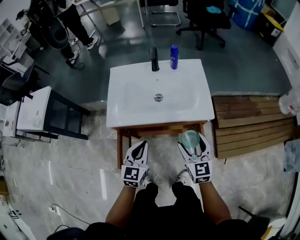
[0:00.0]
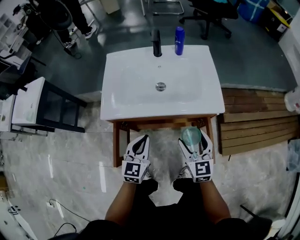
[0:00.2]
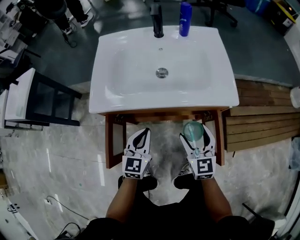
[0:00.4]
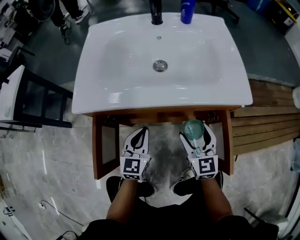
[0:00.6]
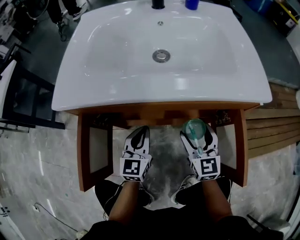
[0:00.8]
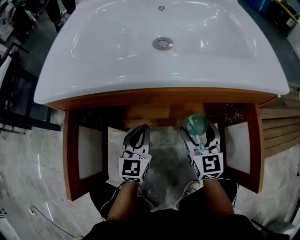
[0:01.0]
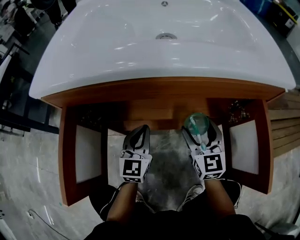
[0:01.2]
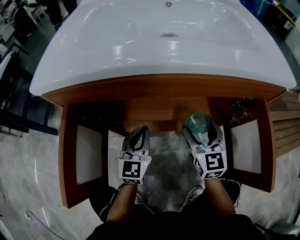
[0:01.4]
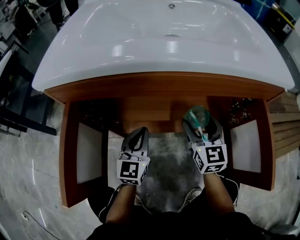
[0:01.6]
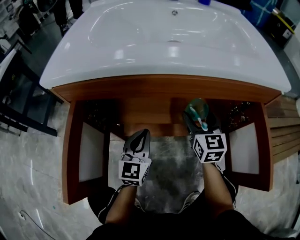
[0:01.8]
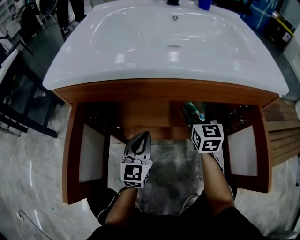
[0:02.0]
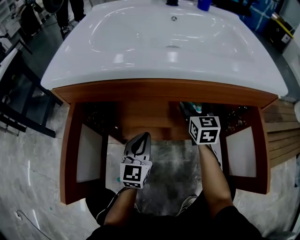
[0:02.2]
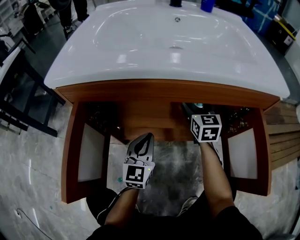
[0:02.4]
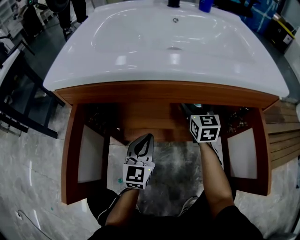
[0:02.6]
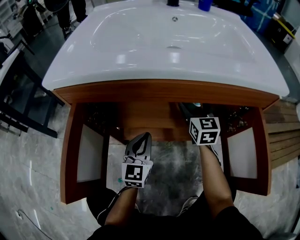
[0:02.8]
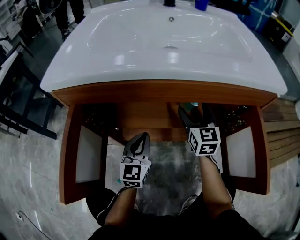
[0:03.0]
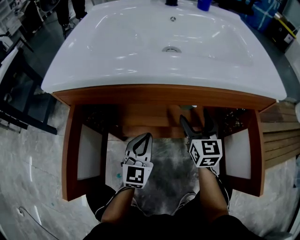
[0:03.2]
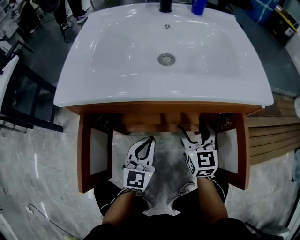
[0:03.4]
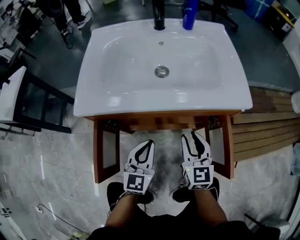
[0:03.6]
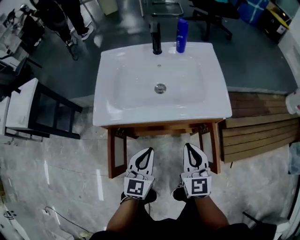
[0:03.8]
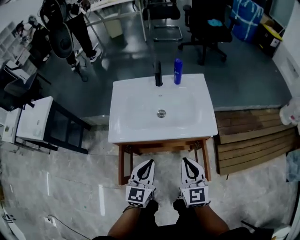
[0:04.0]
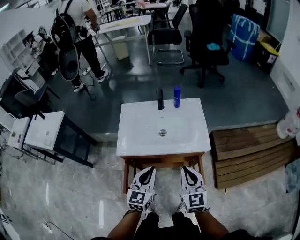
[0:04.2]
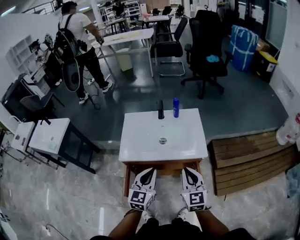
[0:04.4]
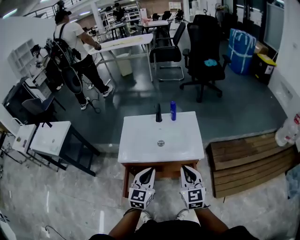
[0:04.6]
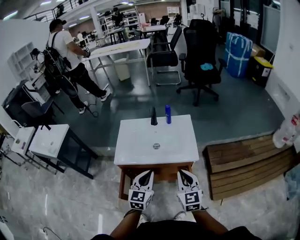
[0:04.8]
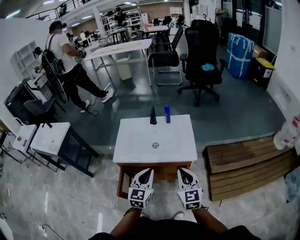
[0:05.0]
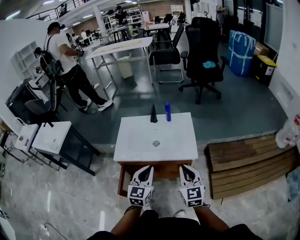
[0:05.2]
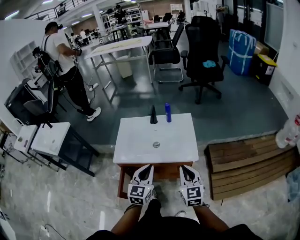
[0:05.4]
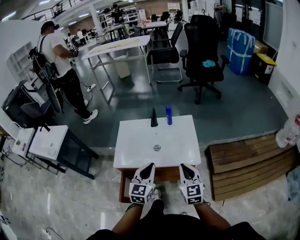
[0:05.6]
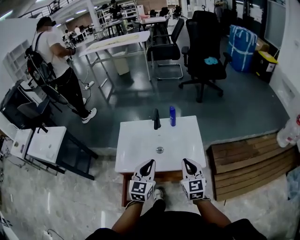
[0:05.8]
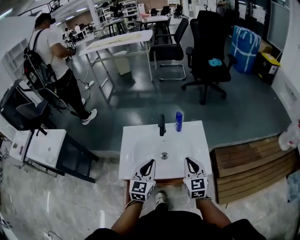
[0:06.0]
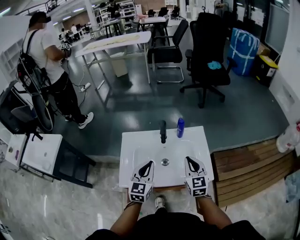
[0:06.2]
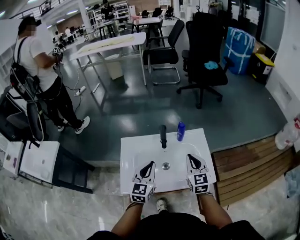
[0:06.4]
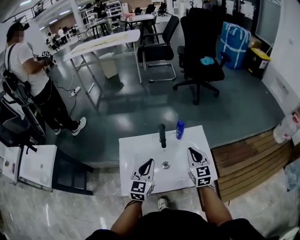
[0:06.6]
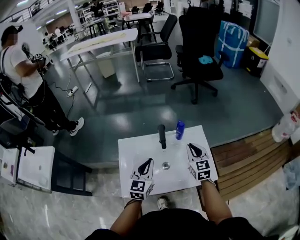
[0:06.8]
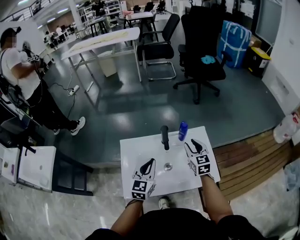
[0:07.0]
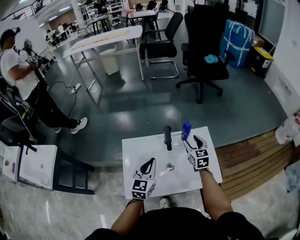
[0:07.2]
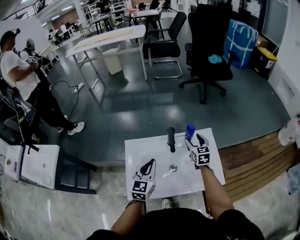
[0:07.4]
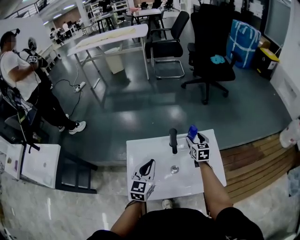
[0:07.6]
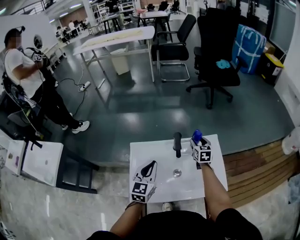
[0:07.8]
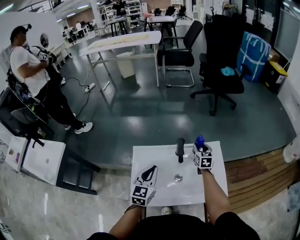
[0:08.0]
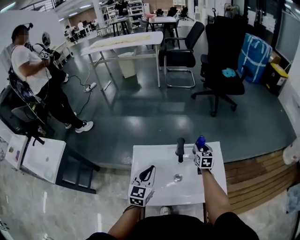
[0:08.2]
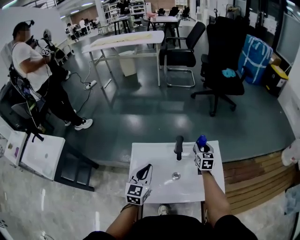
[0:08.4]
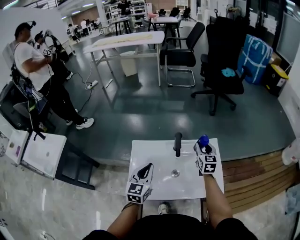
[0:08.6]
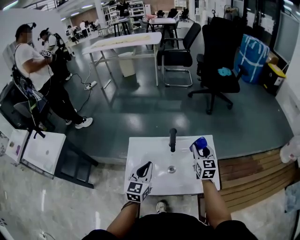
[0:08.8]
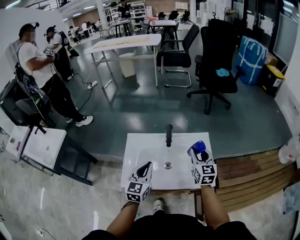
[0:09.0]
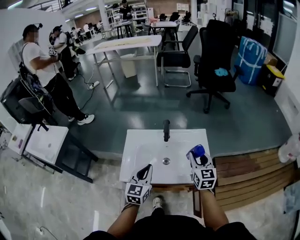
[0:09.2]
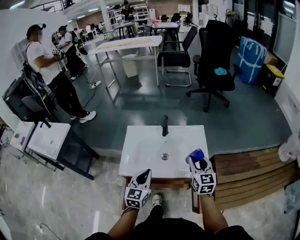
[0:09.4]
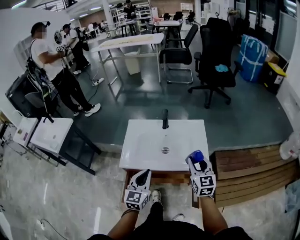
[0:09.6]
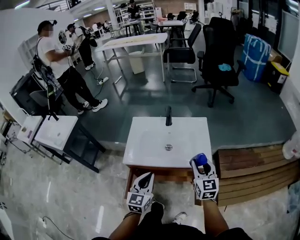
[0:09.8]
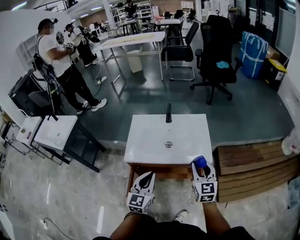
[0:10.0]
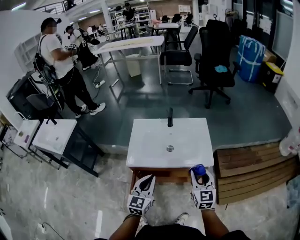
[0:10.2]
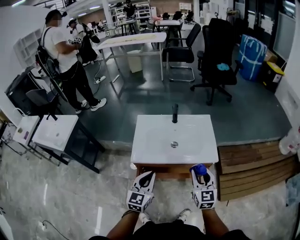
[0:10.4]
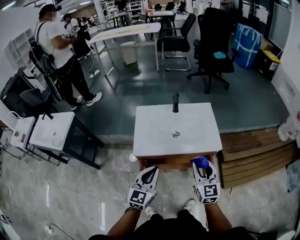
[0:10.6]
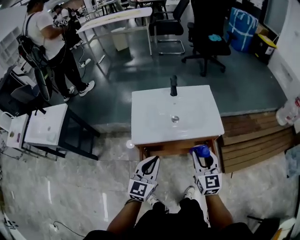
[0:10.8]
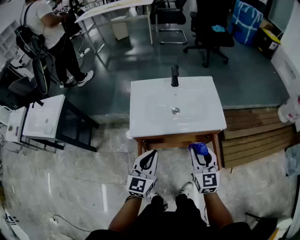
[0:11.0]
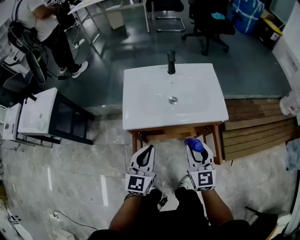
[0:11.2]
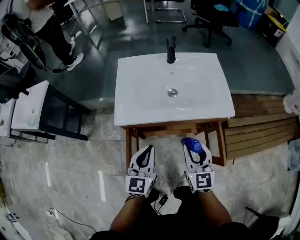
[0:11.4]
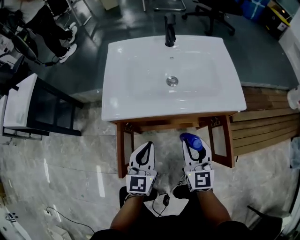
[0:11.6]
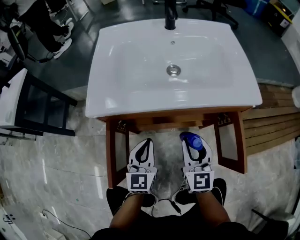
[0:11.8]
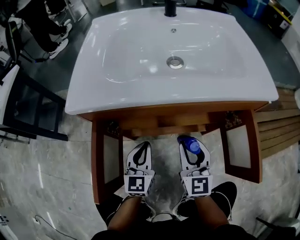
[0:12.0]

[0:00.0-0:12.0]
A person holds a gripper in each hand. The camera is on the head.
0:00.0 to 0:01.6: Both grippers move downward, roughly 40 cm.
0:01.6 to 0:03.0: The right gripper is displaced forward by about 5 cm.
0:03.0 to 0:04.4: The left gripper shifts some 50 cm upward; the right gripper moves upward and backward, approximately 50 cm, and closes its fingers.
0:04.4 to 0:06.0: The grippers both shift forward by some 15 cm.
0:06.0 to 0:07.6: The left gripper moves forward and to the left, some 15 cm. The right gripper shifts about 25 cm forward, and opens its fingers.
0:07.6 to 0:09.0: The left gripper is displaced backward by about 10 cm. Meanwhile the right gripper moves backward and upward, approximately 20 cm.
0:09.0 to 0:10.4: The grippers both shift backward by roughly 25 cm.
0:10.4 to 0:12.0: The grippers both shift downward by some 40 cm.

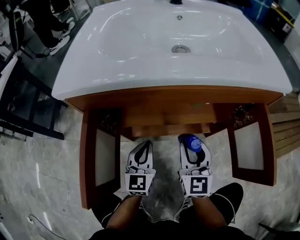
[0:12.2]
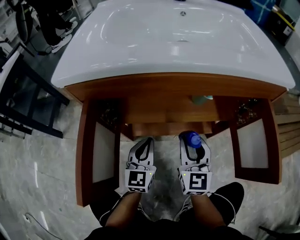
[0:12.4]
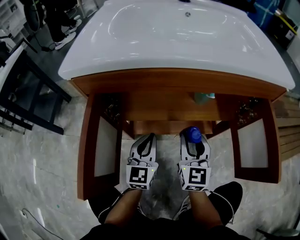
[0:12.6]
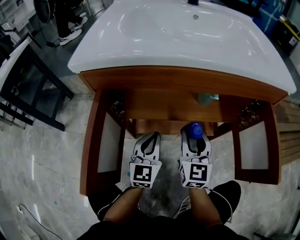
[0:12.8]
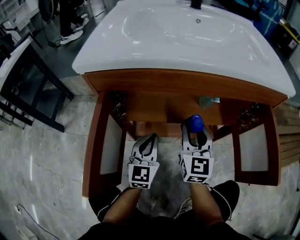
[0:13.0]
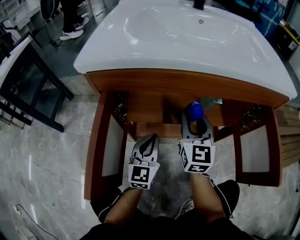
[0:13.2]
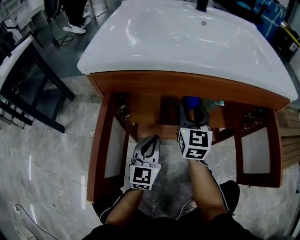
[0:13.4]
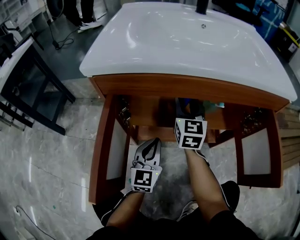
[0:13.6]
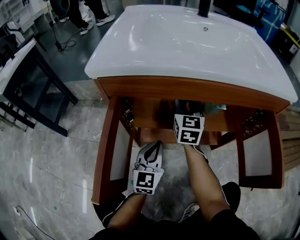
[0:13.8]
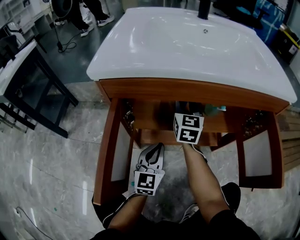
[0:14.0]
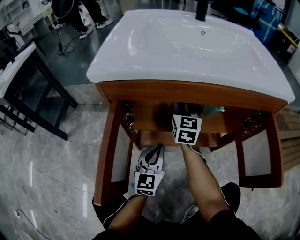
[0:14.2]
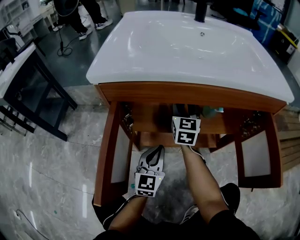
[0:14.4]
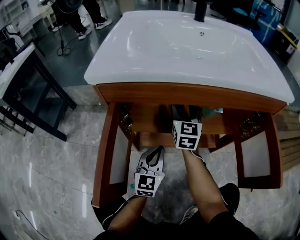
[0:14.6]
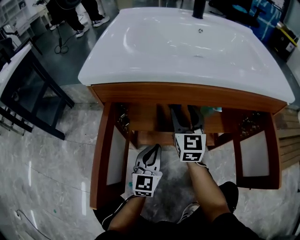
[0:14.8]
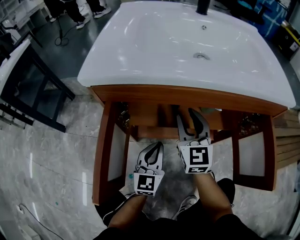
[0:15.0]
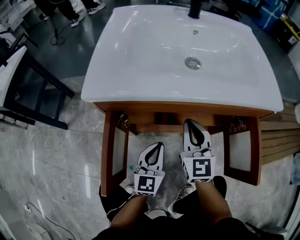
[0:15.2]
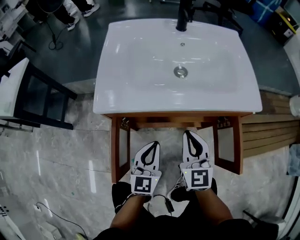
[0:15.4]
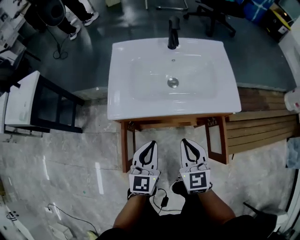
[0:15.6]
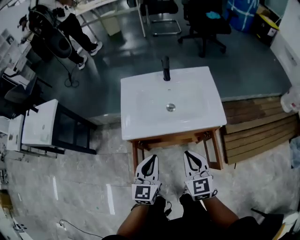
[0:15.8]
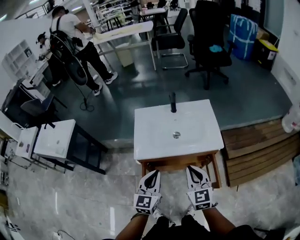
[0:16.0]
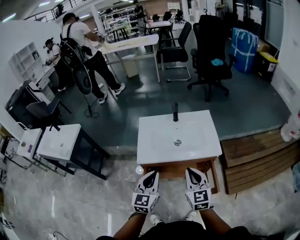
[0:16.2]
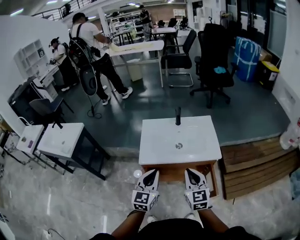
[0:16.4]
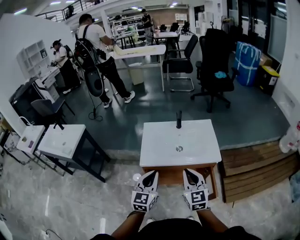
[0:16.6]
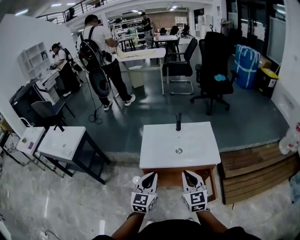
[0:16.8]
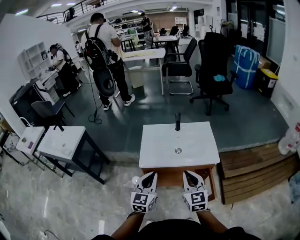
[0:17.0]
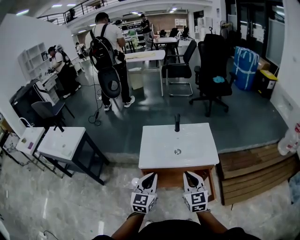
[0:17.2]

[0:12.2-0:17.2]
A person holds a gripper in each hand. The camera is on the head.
0:12.2 to 0:13.8: The right gripper moves forward and to the left, approximately 20 cm.
0:13.8 to 0:15.6: The right gripper goes about 35 cm upward and backward, and closes up; the left gripper shifts about 30 cm upward.
0:15.6 to 0:17.2: The grippers both shift upward by some 25 cm.

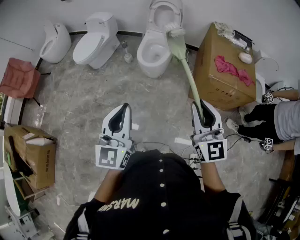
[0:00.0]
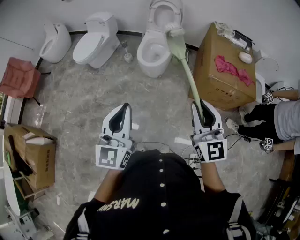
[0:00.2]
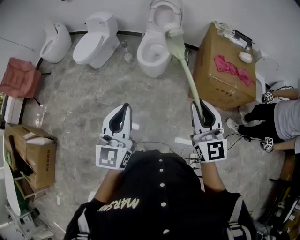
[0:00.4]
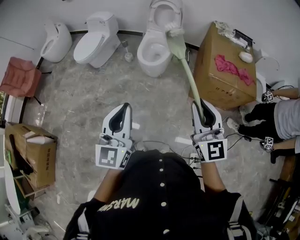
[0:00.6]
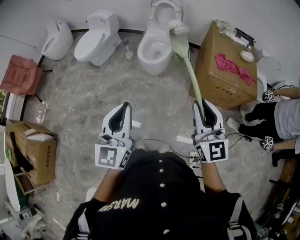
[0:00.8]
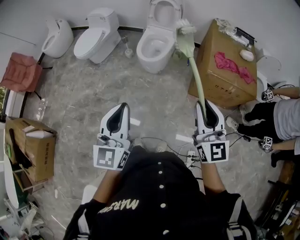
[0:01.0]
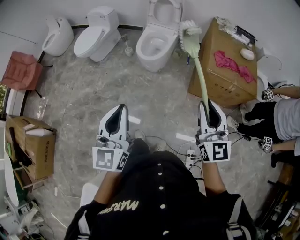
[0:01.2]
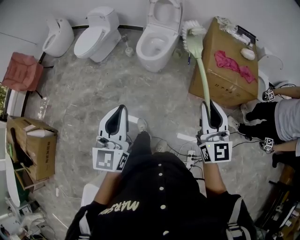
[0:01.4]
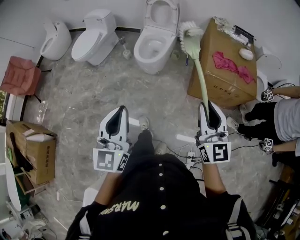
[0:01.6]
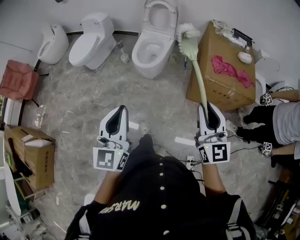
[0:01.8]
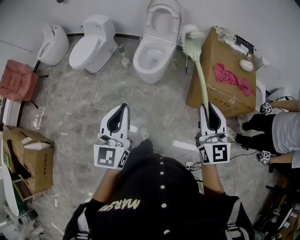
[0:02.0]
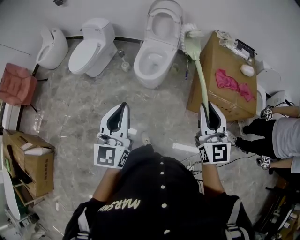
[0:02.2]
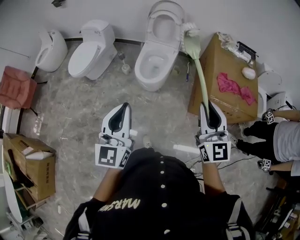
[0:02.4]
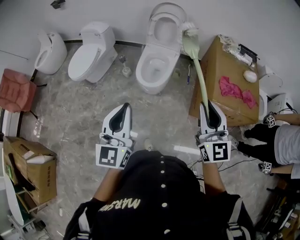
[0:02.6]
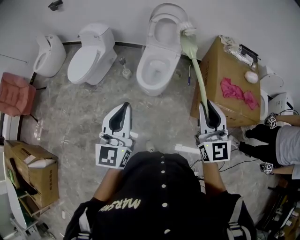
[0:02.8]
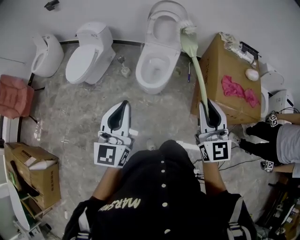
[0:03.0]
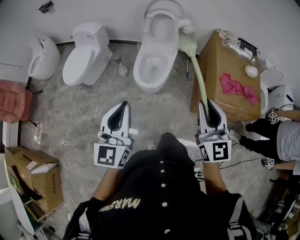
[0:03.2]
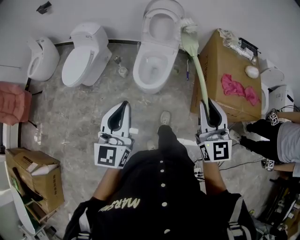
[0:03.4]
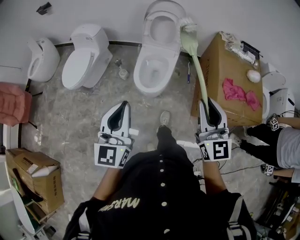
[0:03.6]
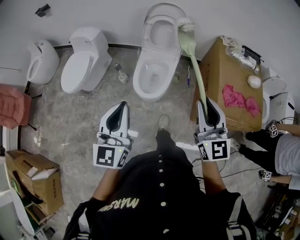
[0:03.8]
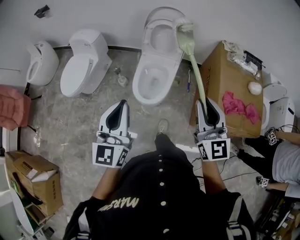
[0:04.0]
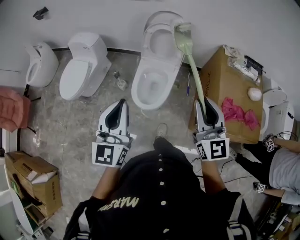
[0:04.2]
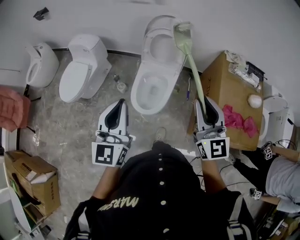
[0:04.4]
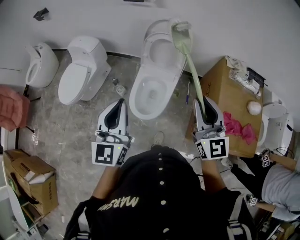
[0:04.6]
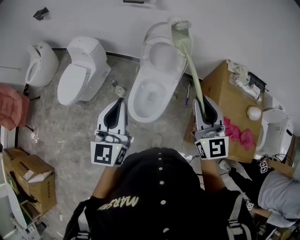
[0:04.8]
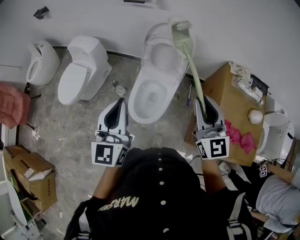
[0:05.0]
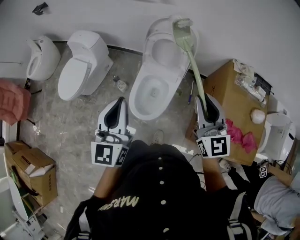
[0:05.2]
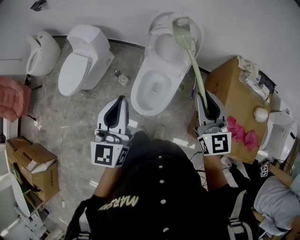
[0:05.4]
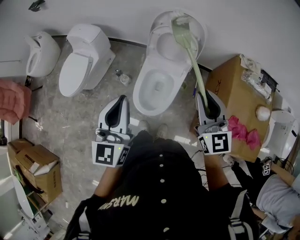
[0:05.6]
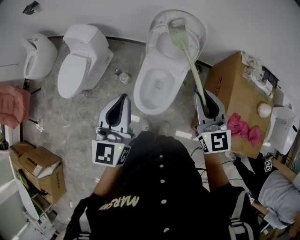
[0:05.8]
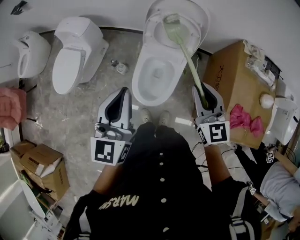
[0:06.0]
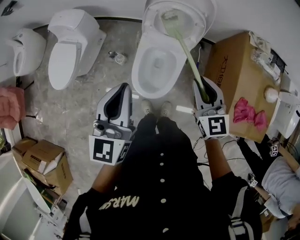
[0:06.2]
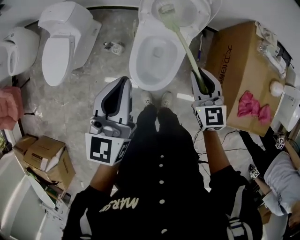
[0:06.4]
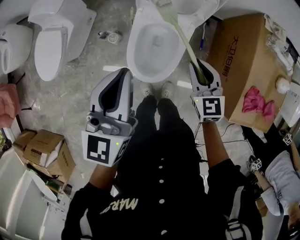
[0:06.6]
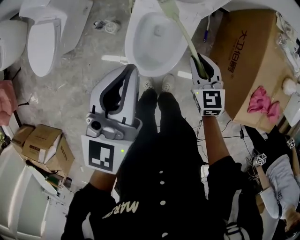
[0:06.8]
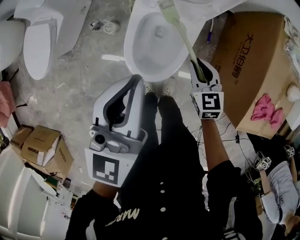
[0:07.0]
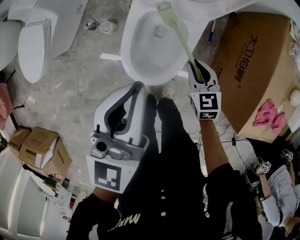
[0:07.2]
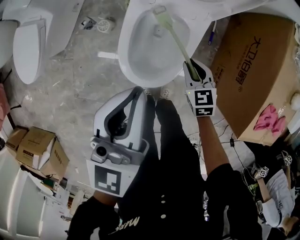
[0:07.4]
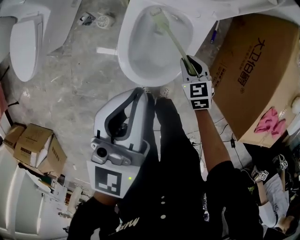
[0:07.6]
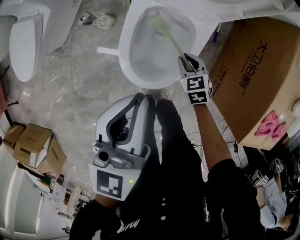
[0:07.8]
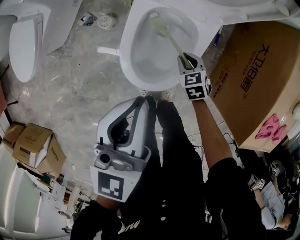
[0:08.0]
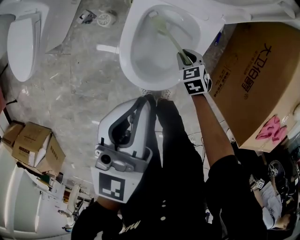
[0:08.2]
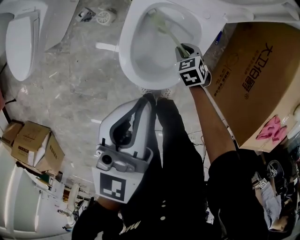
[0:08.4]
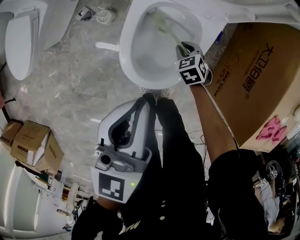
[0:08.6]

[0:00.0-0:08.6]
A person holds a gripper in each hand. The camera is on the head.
0:00.0 to 0:01.4: The right gripper is displaced to the right by approximately 10 cm. The left gripper travels to the right by some 5 cm.
0:01.4 to 0:02.8: The grippers both shift forward by approximately 25 cm.
0:02.8 to 0:04.4: The grippers both shift forward by some 30 cm.
0:04.4 to 0:05.8: The left gripper travels forward by some 15 cm; the right gripper shifts some 20 cm forward and downward.
0:05.8 to 0:07.2: The left gripper moves downward, roughly 25 cm. The right gripper moves downward, some 50 cm, and points its fingers roughly 30 degrees further downward.
0:07.2 to 0:08.6: The right gripper travels downward by some 20 cm, and rotates roughly 30 degrees. The left gripper is displaced downward by some 10 cm.
